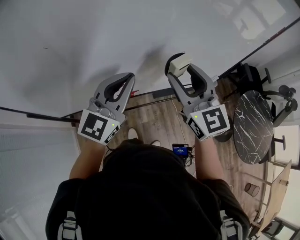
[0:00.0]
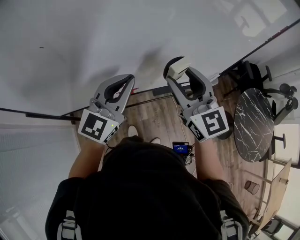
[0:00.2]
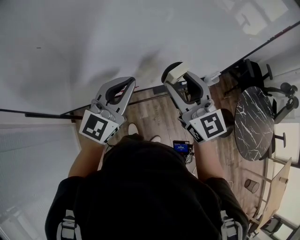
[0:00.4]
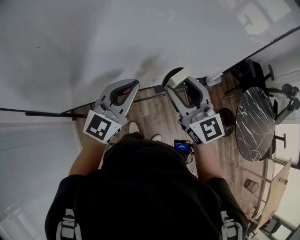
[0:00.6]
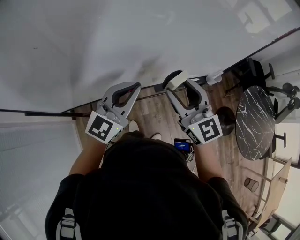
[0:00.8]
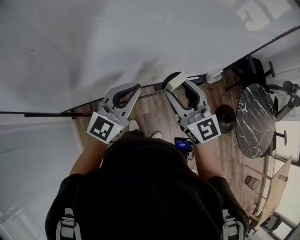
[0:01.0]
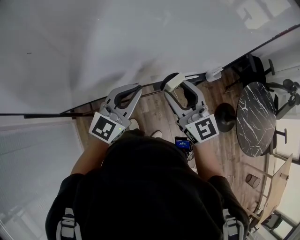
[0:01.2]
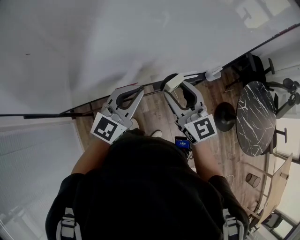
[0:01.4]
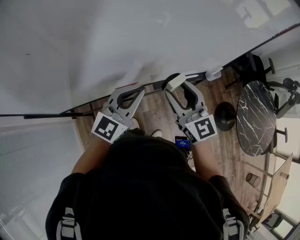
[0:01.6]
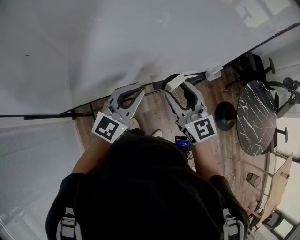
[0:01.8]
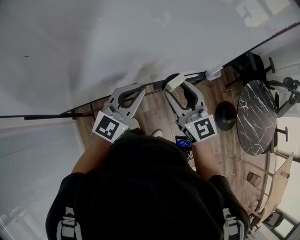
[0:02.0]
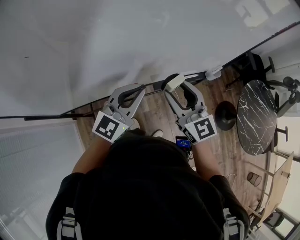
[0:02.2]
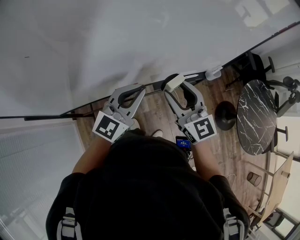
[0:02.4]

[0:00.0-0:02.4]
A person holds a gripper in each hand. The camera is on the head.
0:00.0 to 0:01.2: Both grippers travel together downward, approximately 10 cm.
0:01.2 to 0:02.4: The grippers move only a little.

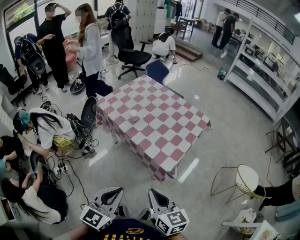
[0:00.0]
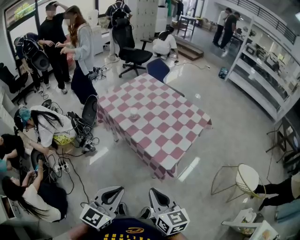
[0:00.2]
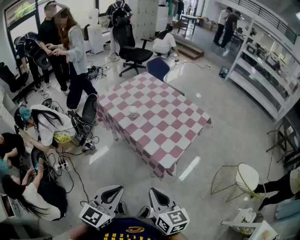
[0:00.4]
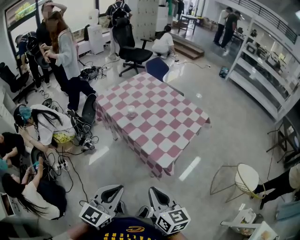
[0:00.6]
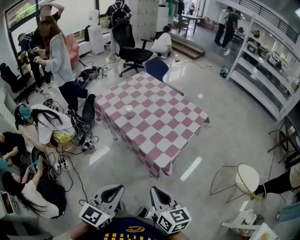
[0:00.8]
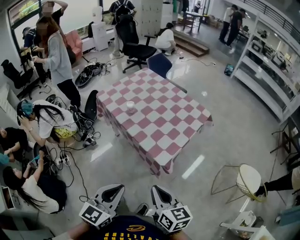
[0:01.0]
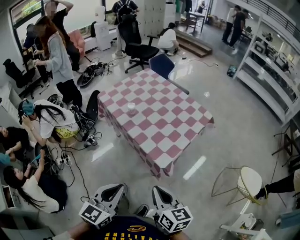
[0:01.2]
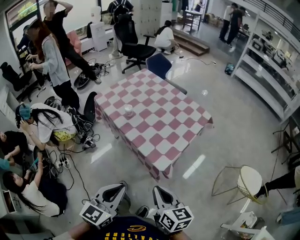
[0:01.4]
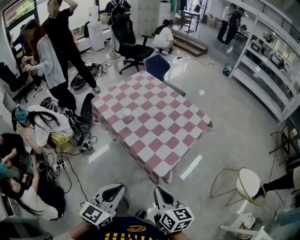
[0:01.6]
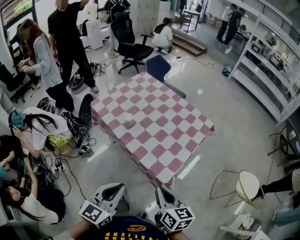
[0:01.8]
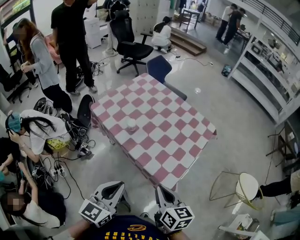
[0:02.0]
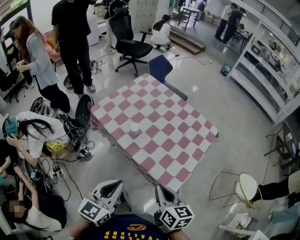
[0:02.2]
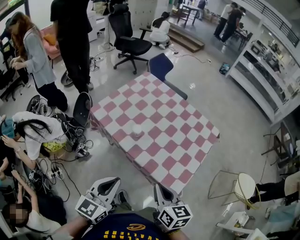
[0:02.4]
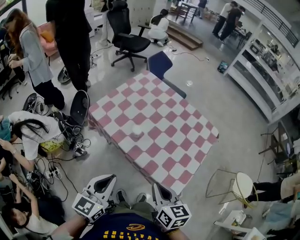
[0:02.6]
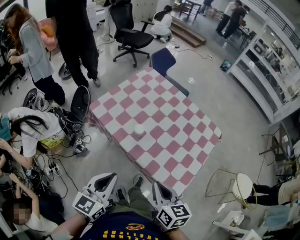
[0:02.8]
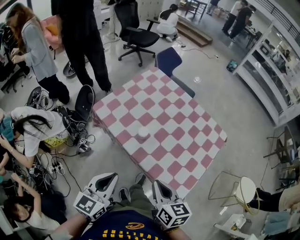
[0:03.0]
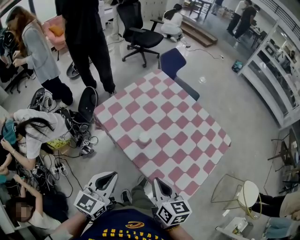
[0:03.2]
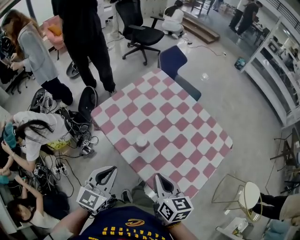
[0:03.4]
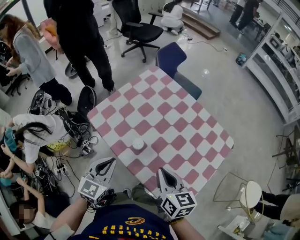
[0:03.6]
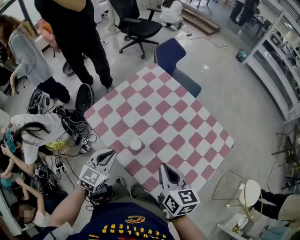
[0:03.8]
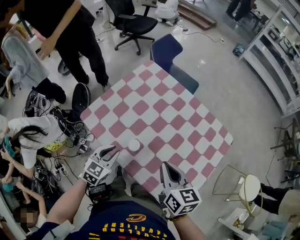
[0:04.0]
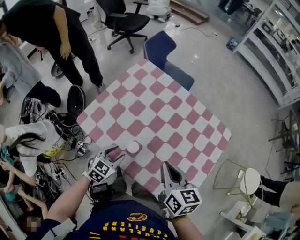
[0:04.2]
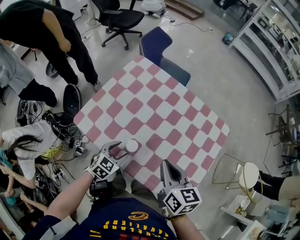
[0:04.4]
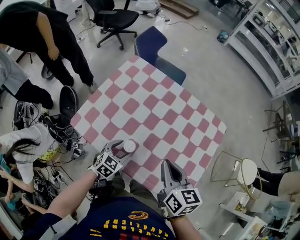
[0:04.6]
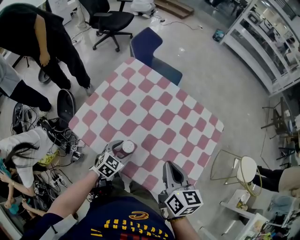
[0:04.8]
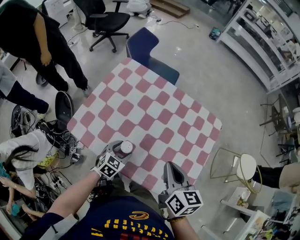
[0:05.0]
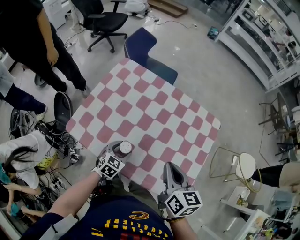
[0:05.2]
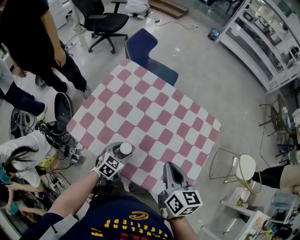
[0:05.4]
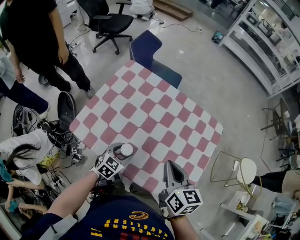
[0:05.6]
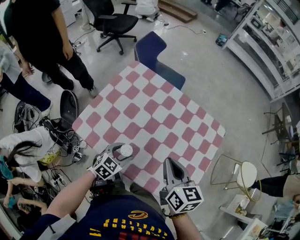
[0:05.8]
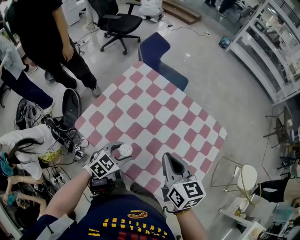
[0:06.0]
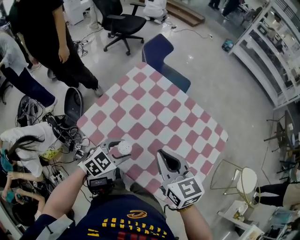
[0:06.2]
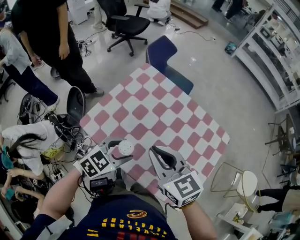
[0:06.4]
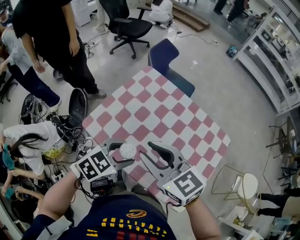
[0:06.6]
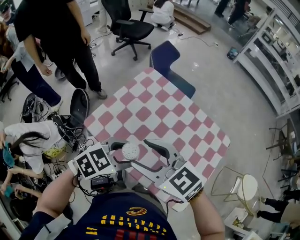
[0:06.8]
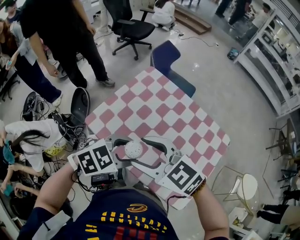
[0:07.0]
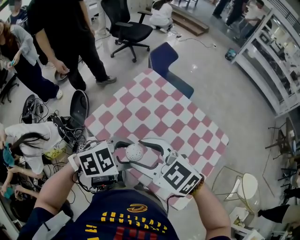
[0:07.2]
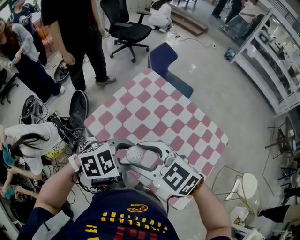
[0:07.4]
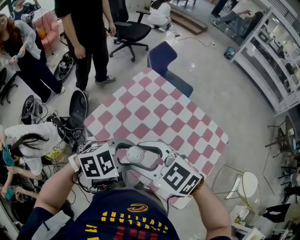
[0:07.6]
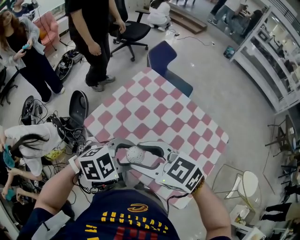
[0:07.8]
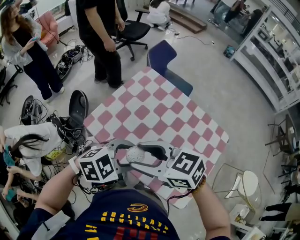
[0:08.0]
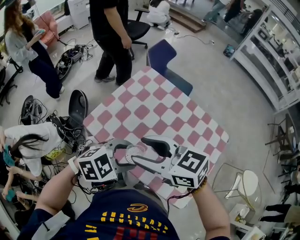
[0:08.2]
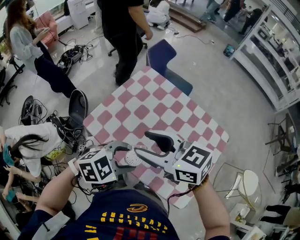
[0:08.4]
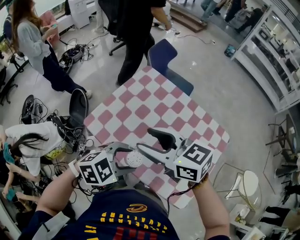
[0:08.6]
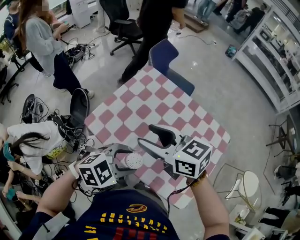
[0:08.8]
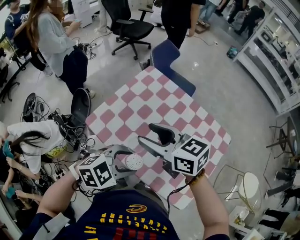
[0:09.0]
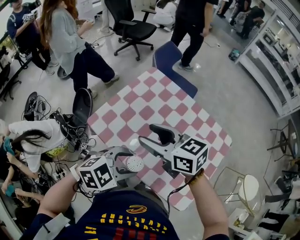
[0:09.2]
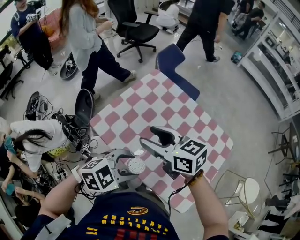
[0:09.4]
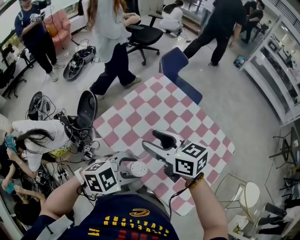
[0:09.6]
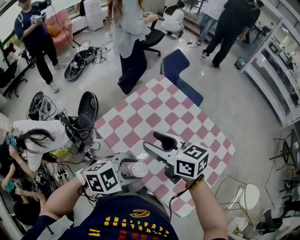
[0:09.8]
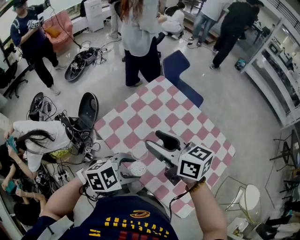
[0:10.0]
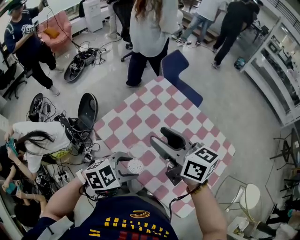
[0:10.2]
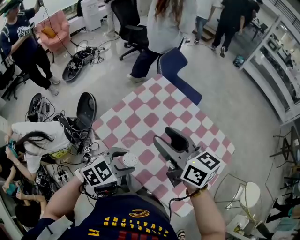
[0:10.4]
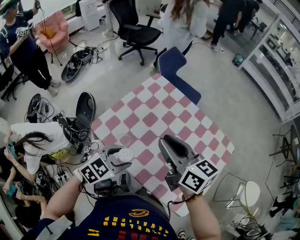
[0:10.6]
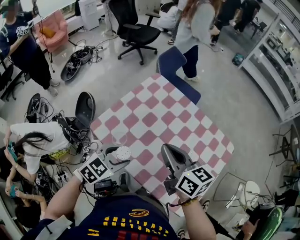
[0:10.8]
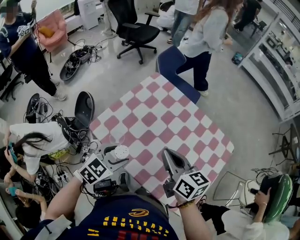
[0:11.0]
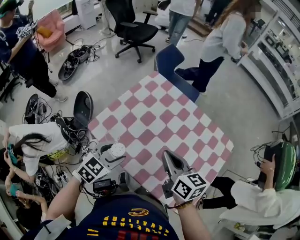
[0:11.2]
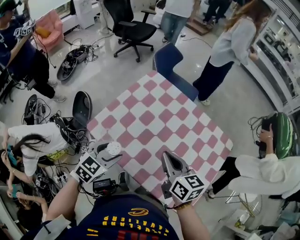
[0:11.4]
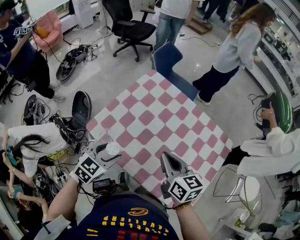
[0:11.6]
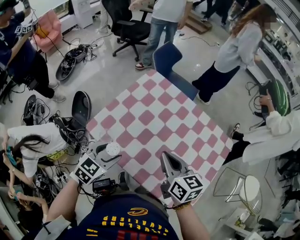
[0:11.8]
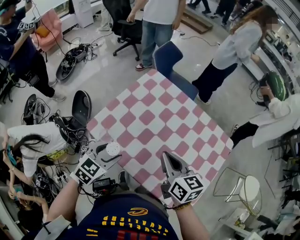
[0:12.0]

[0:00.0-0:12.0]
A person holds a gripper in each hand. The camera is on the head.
0:00.0 to 0:01.6: Both grippers move to the right and forward, about 10 cm.
0:01.6 to 0:03.0: Both grippers travel together forward and to the left, about 30 cm.
0:03.0 to 0:04.4: The left gripper is displaced forward and downward by roughly 30 cm, turns by roughly 40 degrees, and opens up, while the right gripper is displaced forward by about 20 cm.
0:04.4 to 0:06.0: The right gripper changes place by about 5 cm.
0:06.0 to 0:07.6: The left gripper is displaced upward by approximately 15 cm. The right gripper shifts by approximately 15 cm, turns by roughly 60 degrees, and opens up.
0:07.6 to 0:09.0: The right gripper shifts by approximately 10 cm, and turns by some 30 degrees.
0:09.0 to 0:10.4: The left gripper shifts by some 5 cm.
0:10.4 to 0:12.0: The right gripper moves downward and to the right, roughly 15 cm, rotates roughly 20 degrees, and closes its fingers, while the left gripper is displaced to the left by some 5 cm.

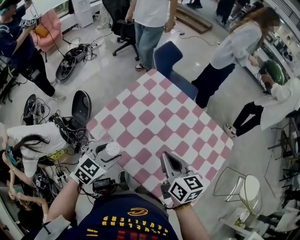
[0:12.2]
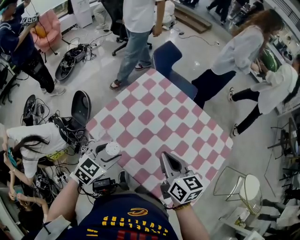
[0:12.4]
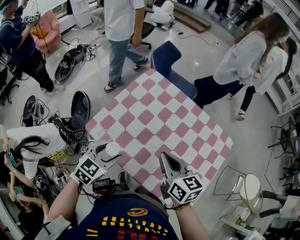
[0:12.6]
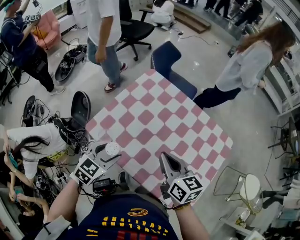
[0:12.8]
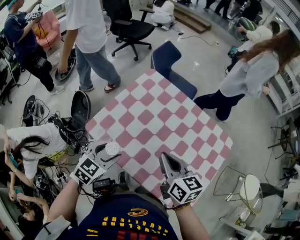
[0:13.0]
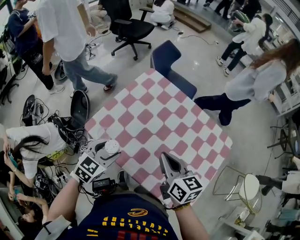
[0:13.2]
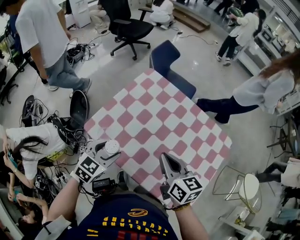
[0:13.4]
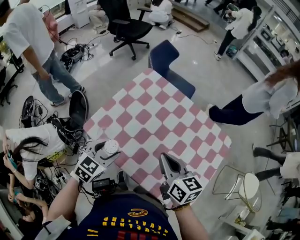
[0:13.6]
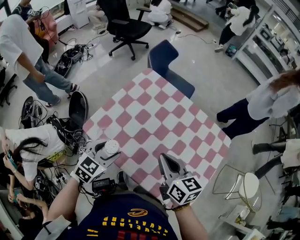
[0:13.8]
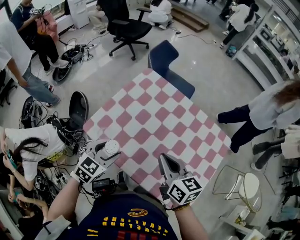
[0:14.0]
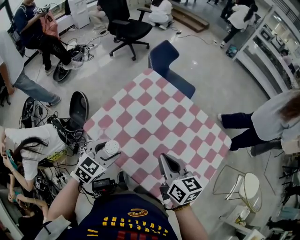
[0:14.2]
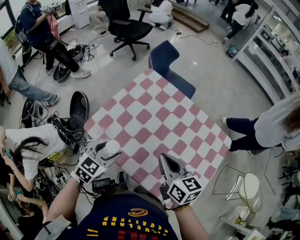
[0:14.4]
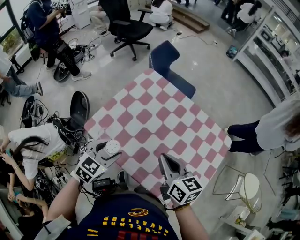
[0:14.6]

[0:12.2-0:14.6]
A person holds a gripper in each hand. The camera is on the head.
0:12.2 to 0:13.4: Both grippers stay about where they are.
0:13.4 to 0:14.6: The two grippers keep their place.

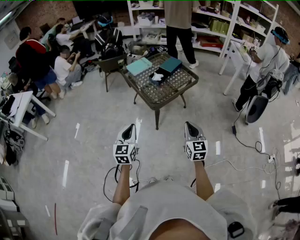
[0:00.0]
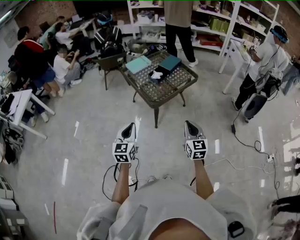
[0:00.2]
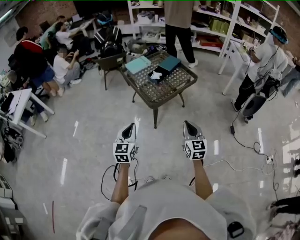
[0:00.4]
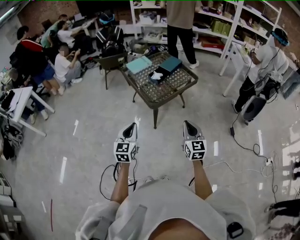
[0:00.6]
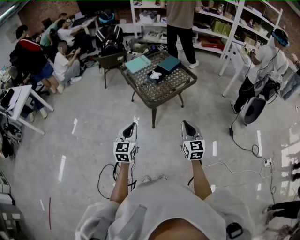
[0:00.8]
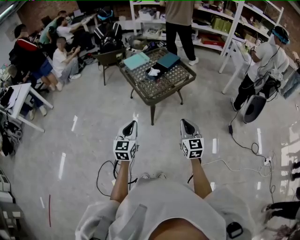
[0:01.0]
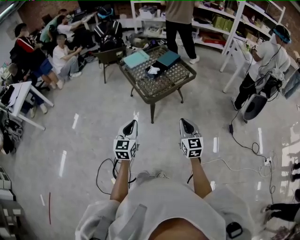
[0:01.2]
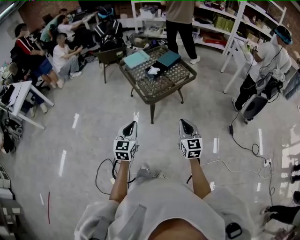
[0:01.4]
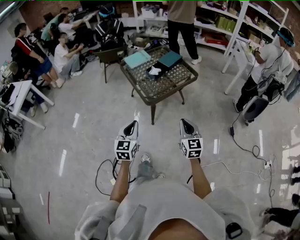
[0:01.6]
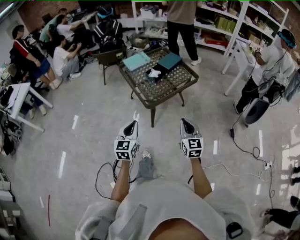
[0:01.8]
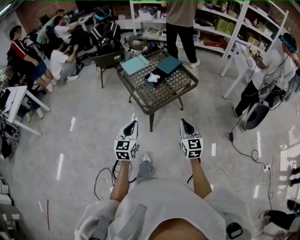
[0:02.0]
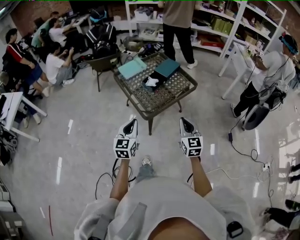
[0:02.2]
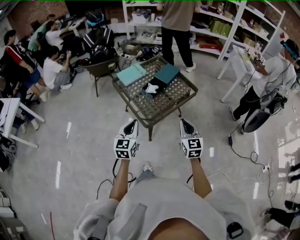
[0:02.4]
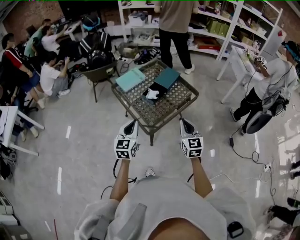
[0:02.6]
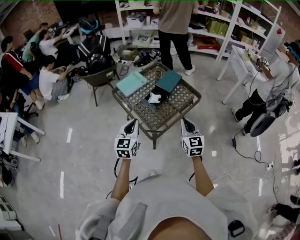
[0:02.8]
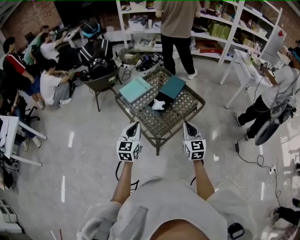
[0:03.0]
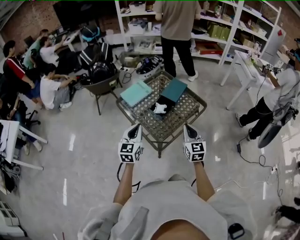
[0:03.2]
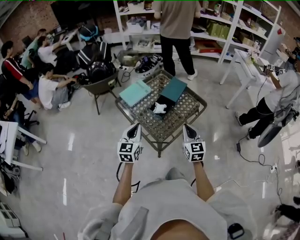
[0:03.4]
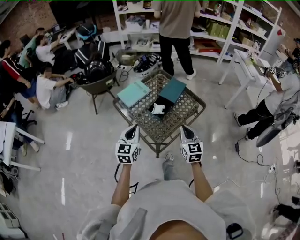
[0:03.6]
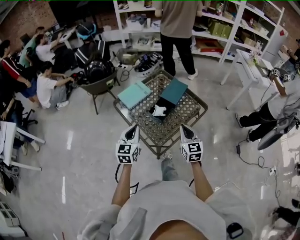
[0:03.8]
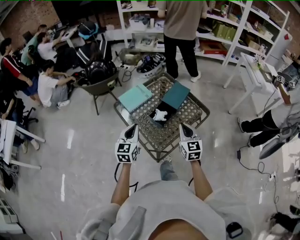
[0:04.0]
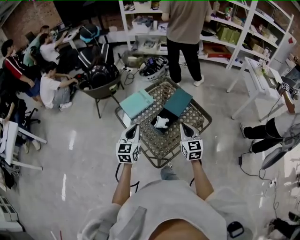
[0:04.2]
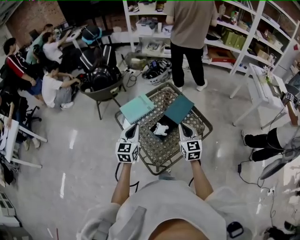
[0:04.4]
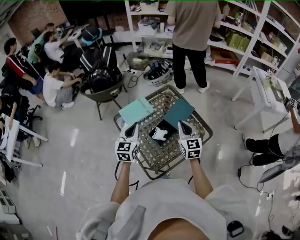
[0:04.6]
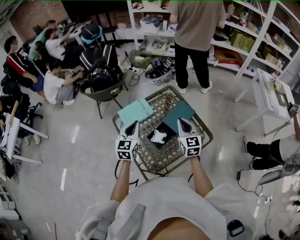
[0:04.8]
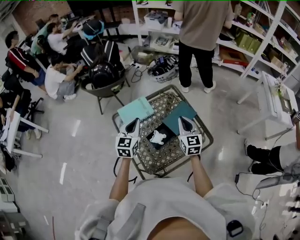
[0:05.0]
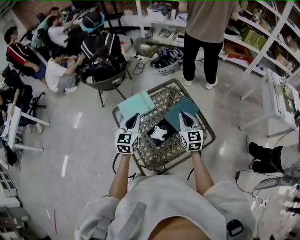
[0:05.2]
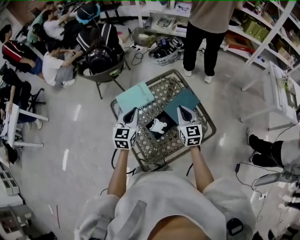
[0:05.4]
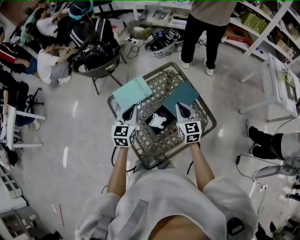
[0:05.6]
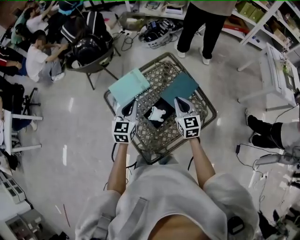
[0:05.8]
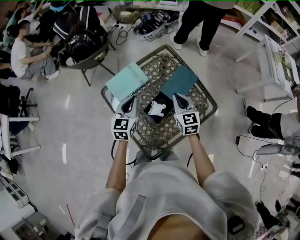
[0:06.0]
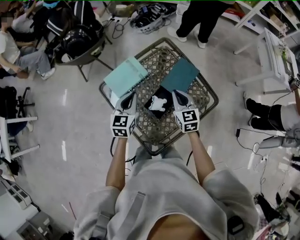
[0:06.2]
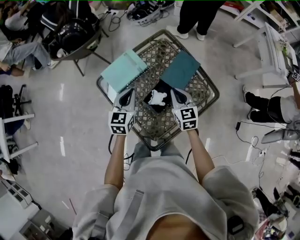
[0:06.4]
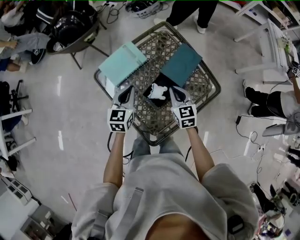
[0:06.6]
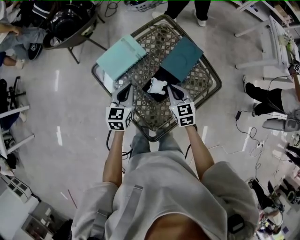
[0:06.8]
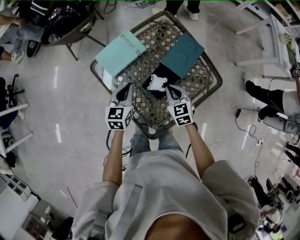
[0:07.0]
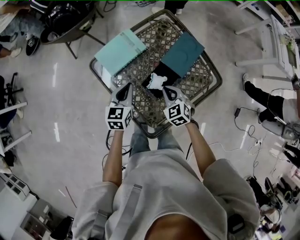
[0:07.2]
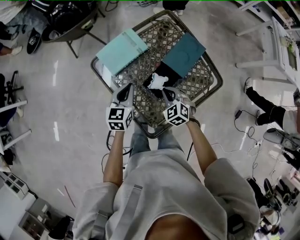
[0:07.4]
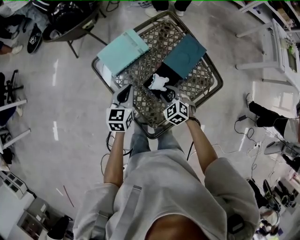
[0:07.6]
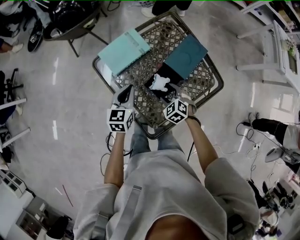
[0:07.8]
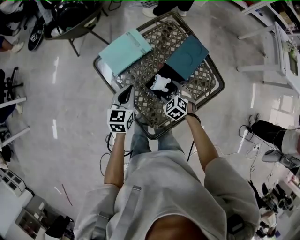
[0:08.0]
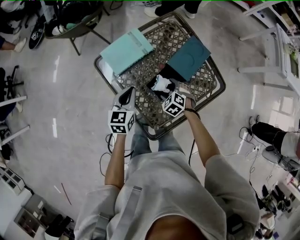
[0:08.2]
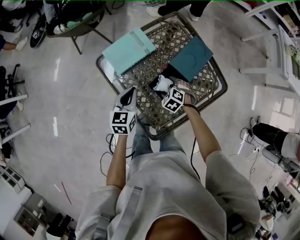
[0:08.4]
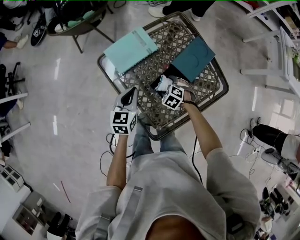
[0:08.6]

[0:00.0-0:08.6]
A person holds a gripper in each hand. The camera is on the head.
0:00.0 to 0:01.4: The left gripper shifts about 10 cm to the right.
0:01.4 to 0:02.8: The two grippers go roughly 35 cm forward.
0:02.8 to 0:04.4: The two grippers go about 25 cm forward.
0:04.4 to 0:05.8: Both grippers travel together forward and downward, approximately 15 cm.
0:05.8 to 0:07.2: The right gripper is displaced downward, backward and to the left by about 20 cm, and rotates some 30 degrees. The left gripper moves downward, approximately 10 cm.
0:07.2 to 0:08.6: The right gripper goes some 10 cm downward, turns by roughly 30 degrees, and opens.
